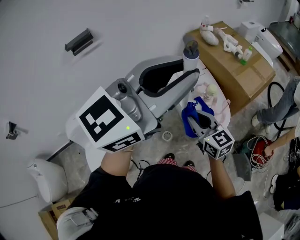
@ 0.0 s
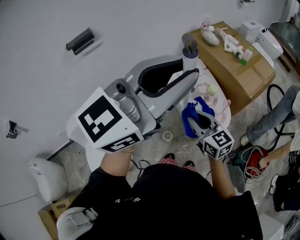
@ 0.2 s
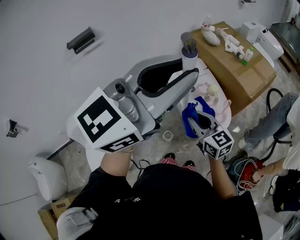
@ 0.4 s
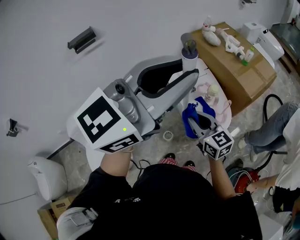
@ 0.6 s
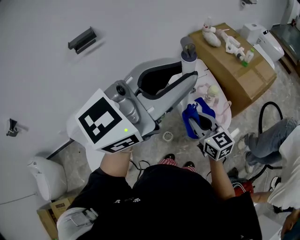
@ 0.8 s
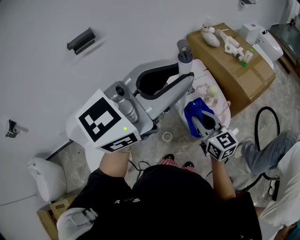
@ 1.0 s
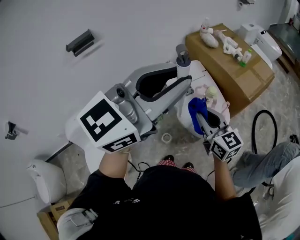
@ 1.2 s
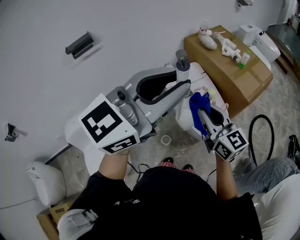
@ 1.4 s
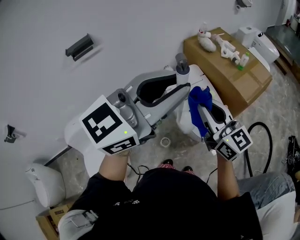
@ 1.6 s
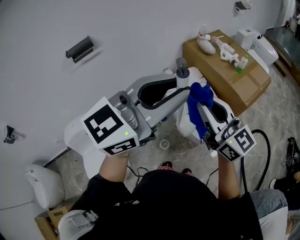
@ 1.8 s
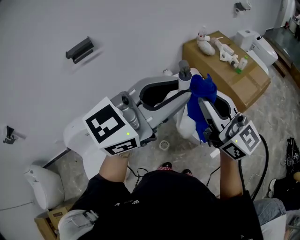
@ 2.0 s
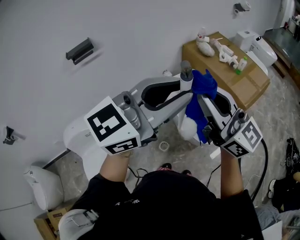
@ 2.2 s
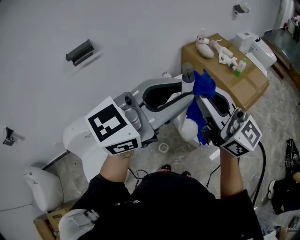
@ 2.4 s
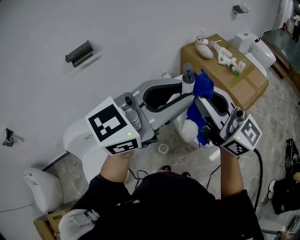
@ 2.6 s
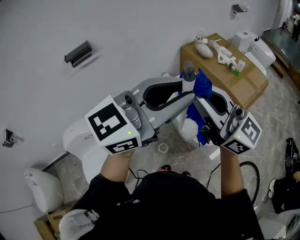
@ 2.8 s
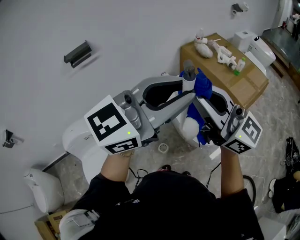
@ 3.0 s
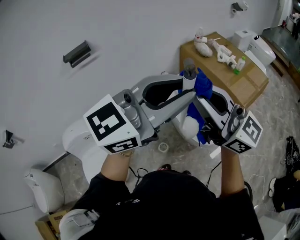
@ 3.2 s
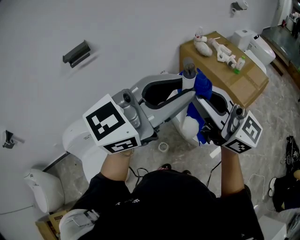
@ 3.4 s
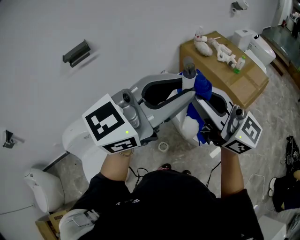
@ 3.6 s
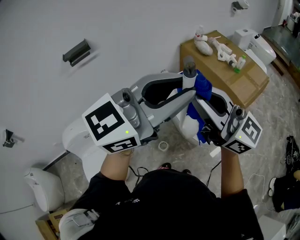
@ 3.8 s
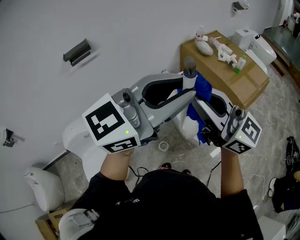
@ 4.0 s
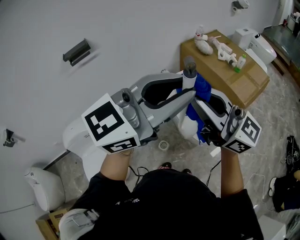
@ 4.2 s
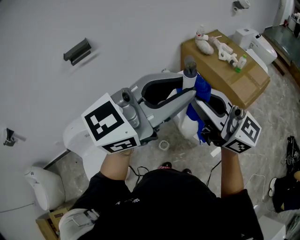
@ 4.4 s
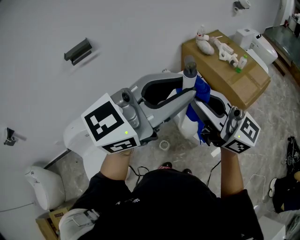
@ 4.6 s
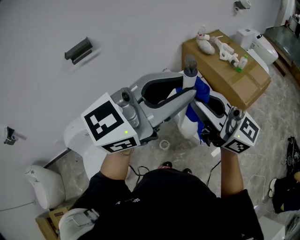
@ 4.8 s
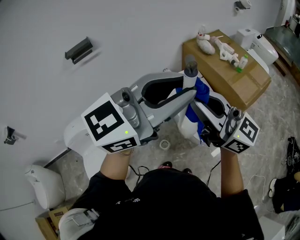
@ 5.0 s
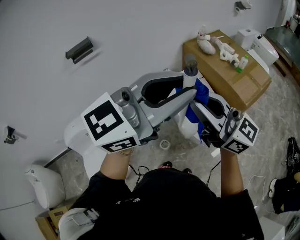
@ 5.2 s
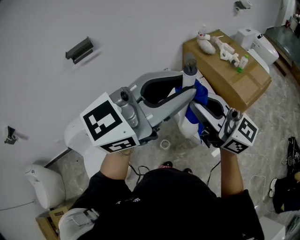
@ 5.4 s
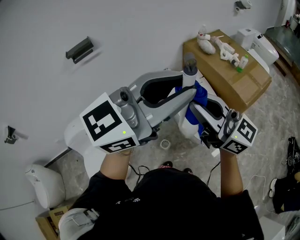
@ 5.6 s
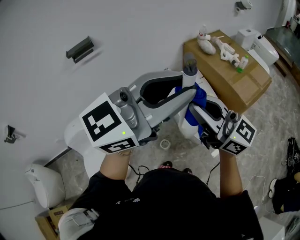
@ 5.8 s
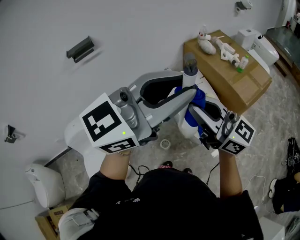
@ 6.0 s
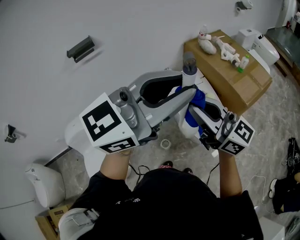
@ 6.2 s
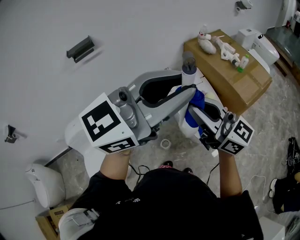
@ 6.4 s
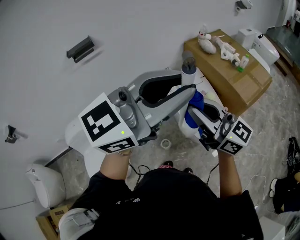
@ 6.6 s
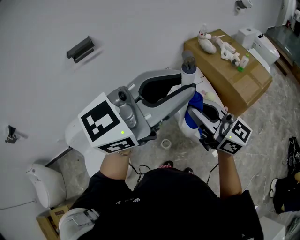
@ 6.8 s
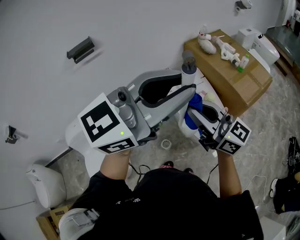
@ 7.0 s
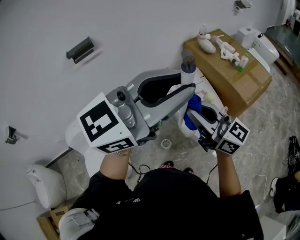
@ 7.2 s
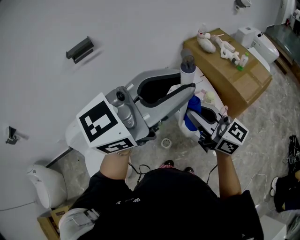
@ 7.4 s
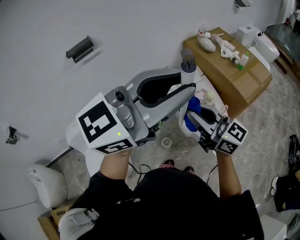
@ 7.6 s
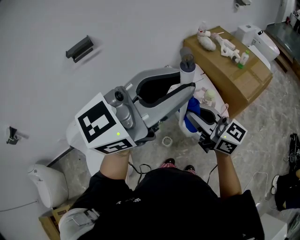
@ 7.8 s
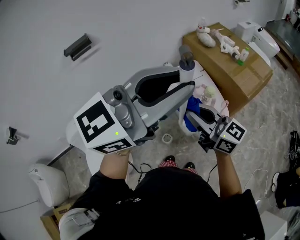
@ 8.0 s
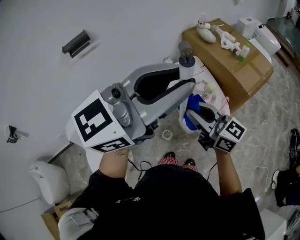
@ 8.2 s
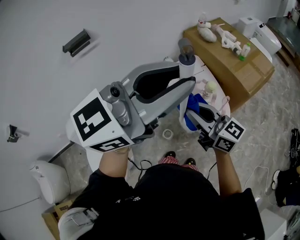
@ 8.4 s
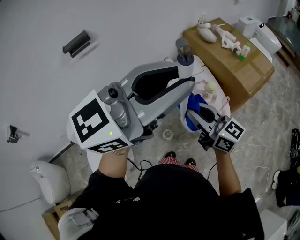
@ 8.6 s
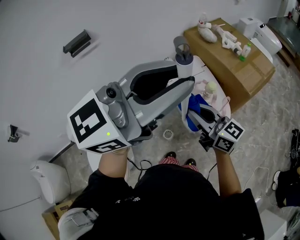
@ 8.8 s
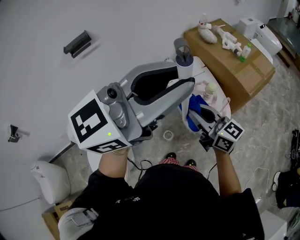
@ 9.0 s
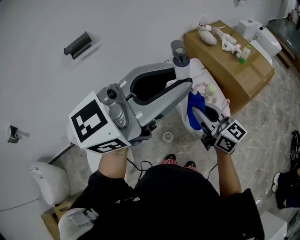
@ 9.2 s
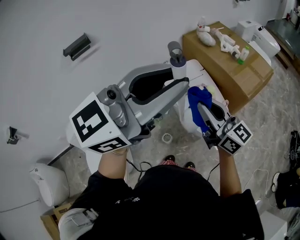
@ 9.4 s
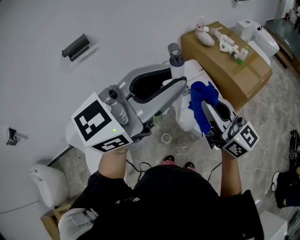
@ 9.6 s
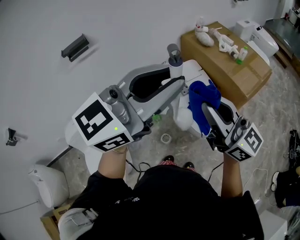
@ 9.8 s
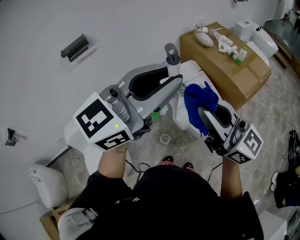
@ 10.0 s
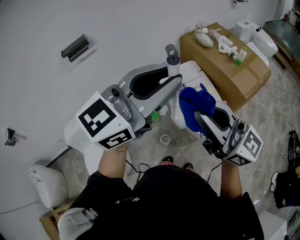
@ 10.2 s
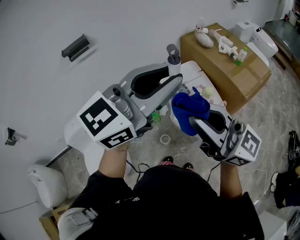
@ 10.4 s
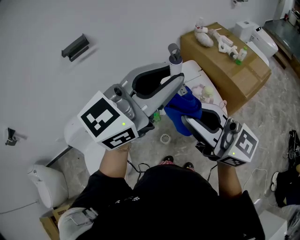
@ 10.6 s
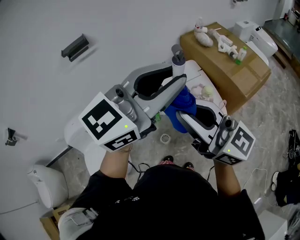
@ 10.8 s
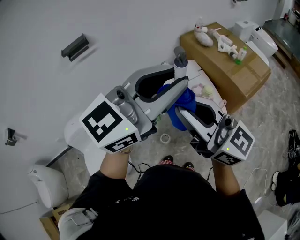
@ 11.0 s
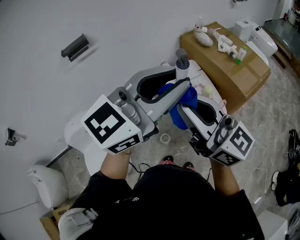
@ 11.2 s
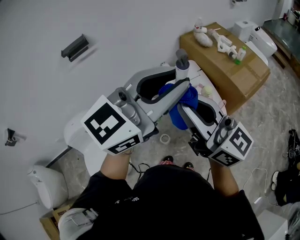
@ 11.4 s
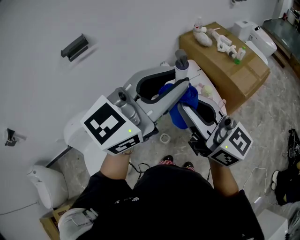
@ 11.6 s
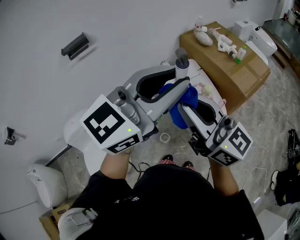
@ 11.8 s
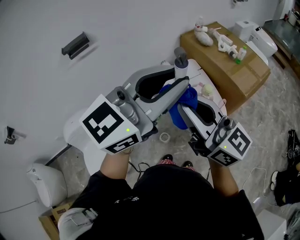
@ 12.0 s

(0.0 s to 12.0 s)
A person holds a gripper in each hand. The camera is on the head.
0.0 s - 1.6 s: The right gripper travels upward by approximately 15 cm.
1.6 s - 3.0 s: The right gripper travels upward by some 10 cm, and swivels roughly 20 degrees.
3.0 s - 4.4 s: There are only small adjustments of the grippers.
4.4 s - 6.0 s: The grippers move only a little.
6.0 s - 7.6 s: The right gripper goes about 5 cm downward.
7.6 s - 9.0 s: The right gripper travels downward by approximately 5 cm.
9.0 s - 10.4 s: The right gripper is displaced upward and backward by roughly 15 cm, and rotates some 20 degrees.
10.4 s - 12.0 s: The grippers make only small movements.

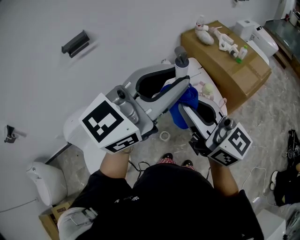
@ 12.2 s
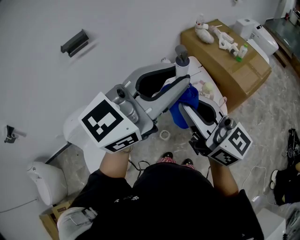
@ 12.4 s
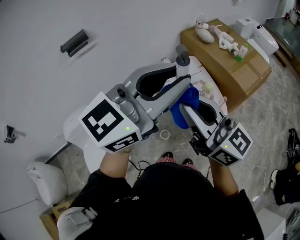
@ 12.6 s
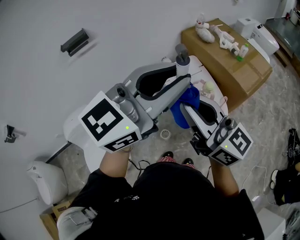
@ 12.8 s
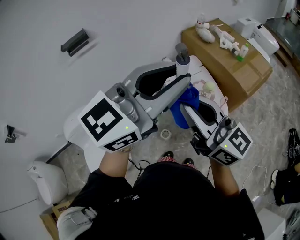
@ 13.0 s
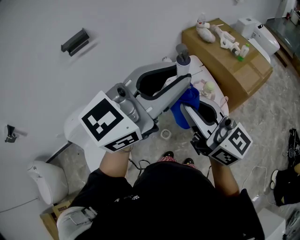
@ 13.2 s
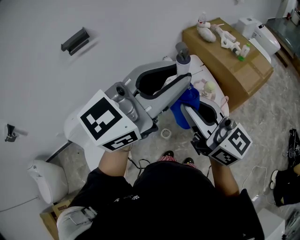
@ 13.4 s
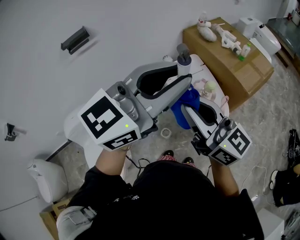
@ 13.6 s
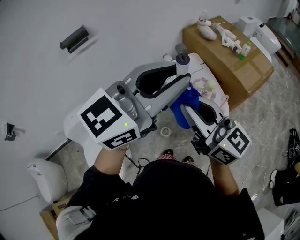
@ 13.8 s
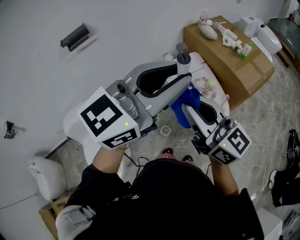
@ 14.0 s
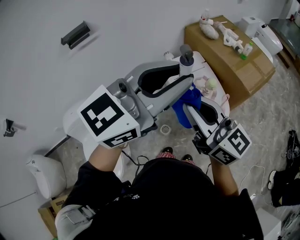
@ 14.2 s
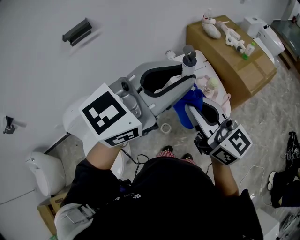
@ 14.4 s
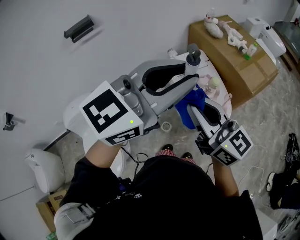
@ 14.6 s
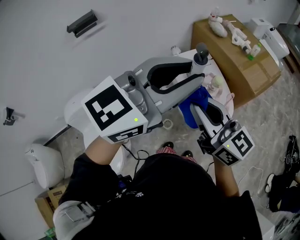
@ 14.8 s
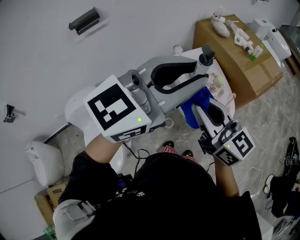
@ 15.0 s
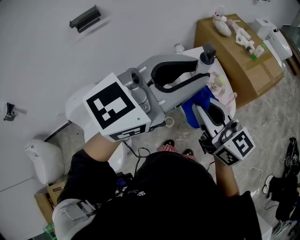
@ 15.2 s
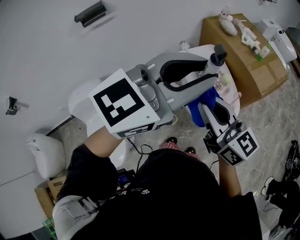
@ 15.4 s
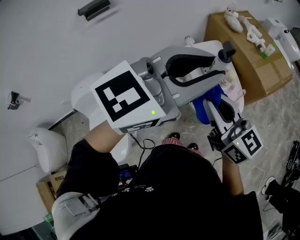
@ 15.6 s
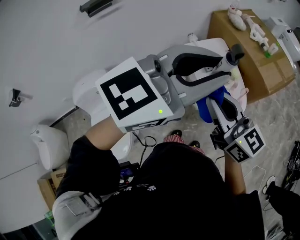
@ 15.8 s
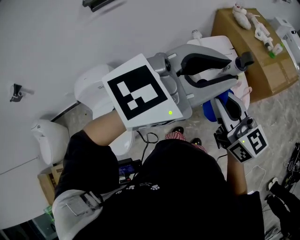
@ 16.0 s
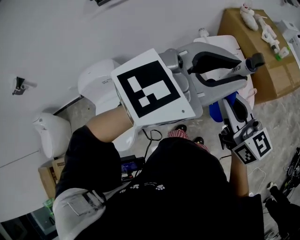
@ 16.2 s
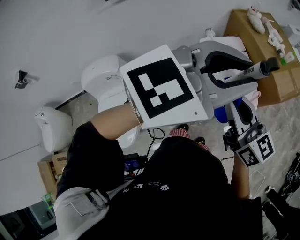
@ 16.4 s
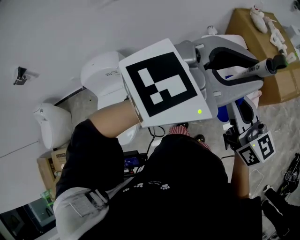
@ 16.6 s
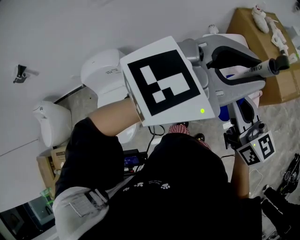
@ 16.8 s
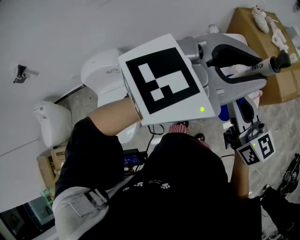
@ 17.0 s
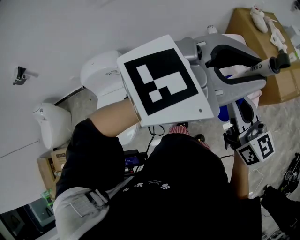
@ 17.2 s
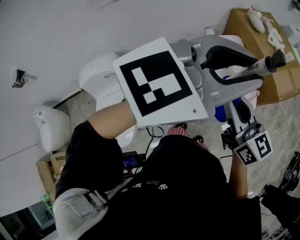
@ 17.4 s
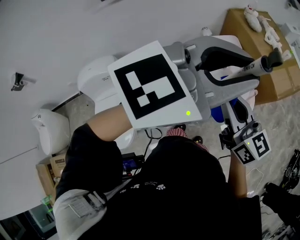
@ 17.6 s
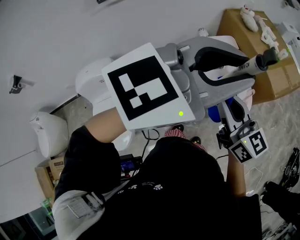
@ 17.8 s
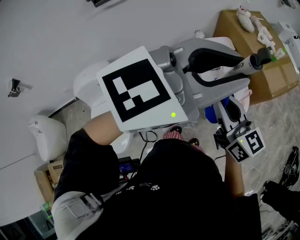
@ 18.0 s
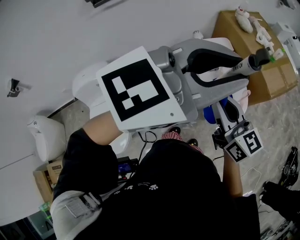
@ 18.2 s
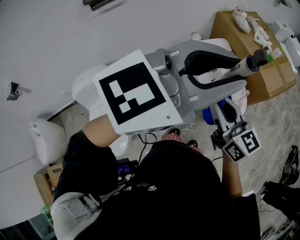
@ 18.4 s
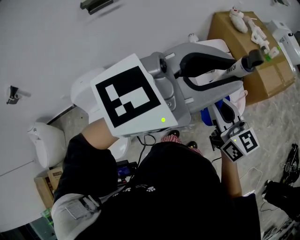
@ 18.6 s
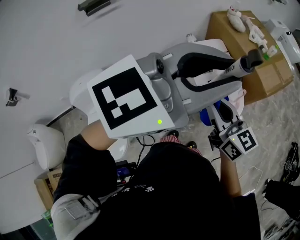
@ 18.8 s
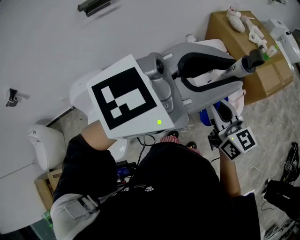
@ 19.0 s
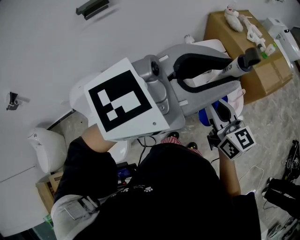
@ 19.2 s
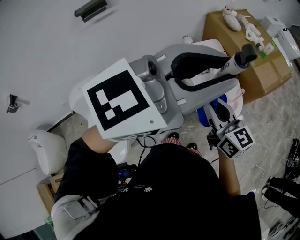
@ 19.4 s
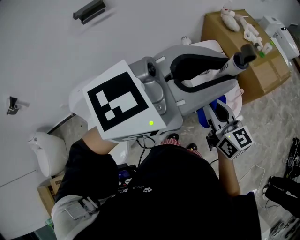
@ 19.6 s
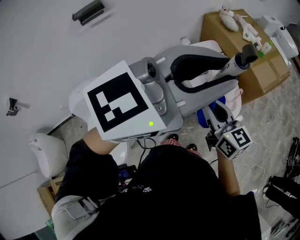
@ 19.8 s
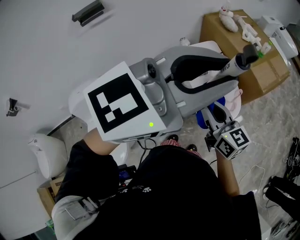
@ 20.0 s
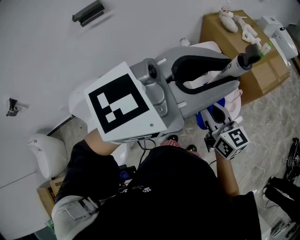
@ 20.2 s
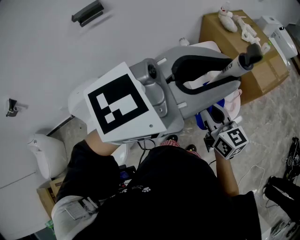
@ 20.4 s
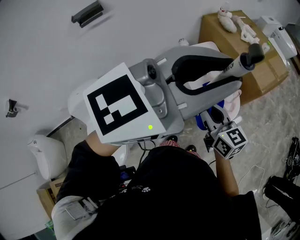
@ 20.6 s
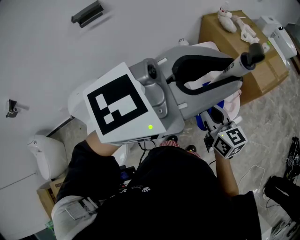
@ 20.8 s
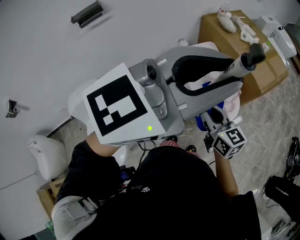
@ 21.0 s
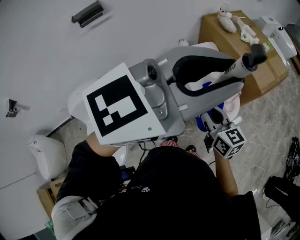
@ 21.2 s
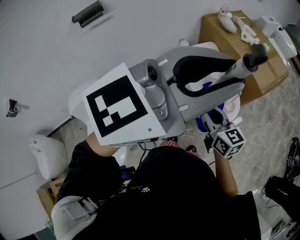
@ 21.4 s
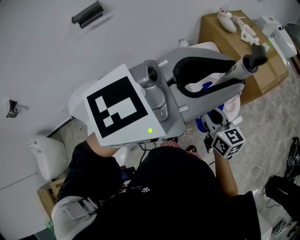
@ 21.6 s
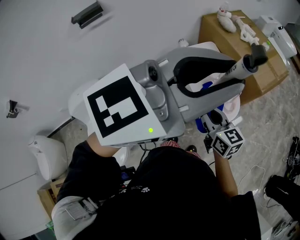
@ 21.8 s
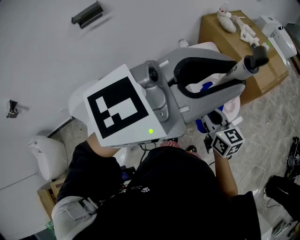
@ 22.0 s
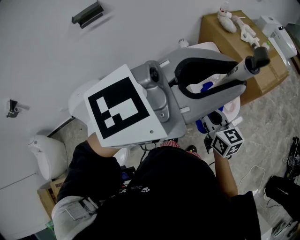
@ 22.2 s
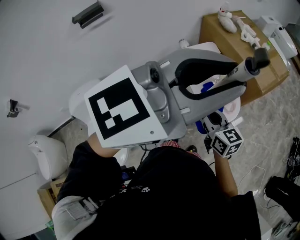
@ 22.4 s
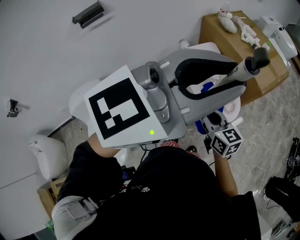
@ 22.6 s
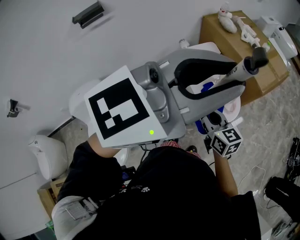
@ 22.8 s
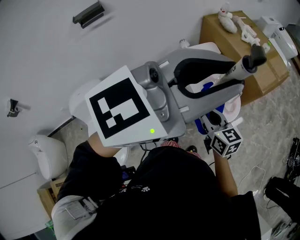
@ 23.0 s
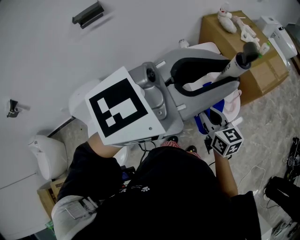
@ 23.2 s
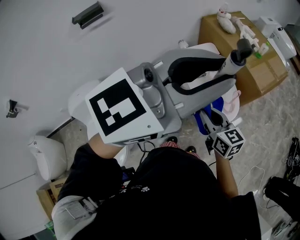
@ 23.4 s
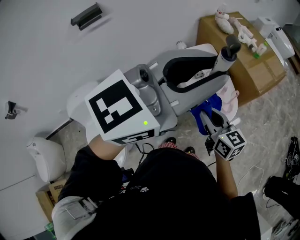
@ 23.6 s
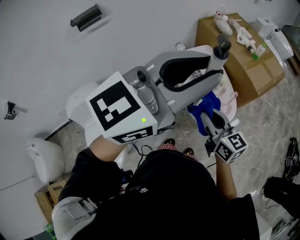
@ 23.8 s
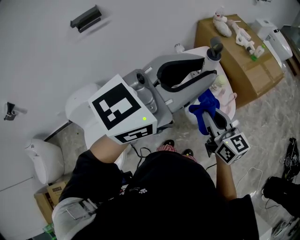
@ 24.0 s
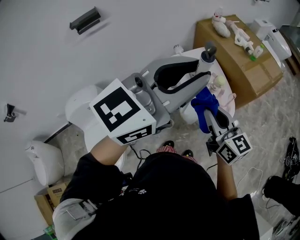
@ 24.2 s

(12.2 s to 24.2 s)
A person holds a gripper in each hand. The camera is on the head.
12.2 s - 13.8 s: The grippers make only small movements.
13.8 s - 15.2 s: The grippers make only small movements.
15.2 s - 18.2 s: The grippers make only small movements.
18.2 s - 19.8 s: There are only small adjustments of the grippers.
19.8 s - 21.2 s: The grippers make only small movements.
21.2 s - 22.6 s: The grippers move only a little.
22.6 s - 24.2 s: The right gripper shifts approximately 10 cm upward. Meanwhile the left gripper moves some 5 cm.
